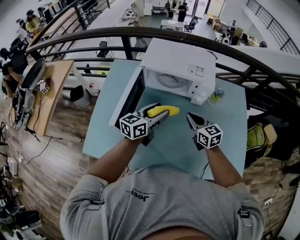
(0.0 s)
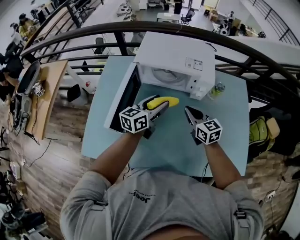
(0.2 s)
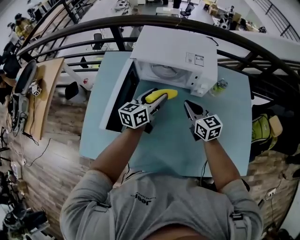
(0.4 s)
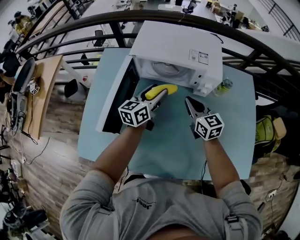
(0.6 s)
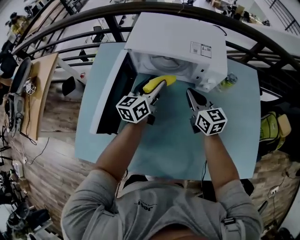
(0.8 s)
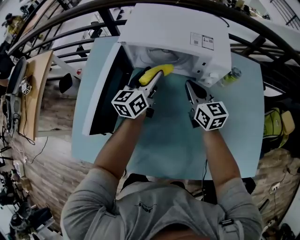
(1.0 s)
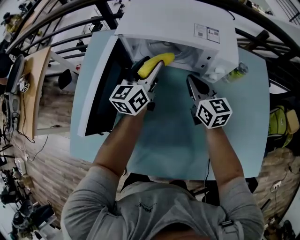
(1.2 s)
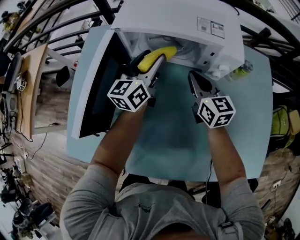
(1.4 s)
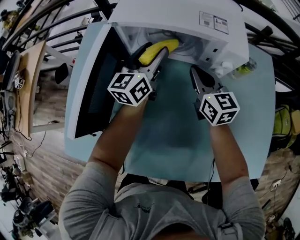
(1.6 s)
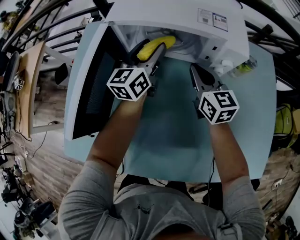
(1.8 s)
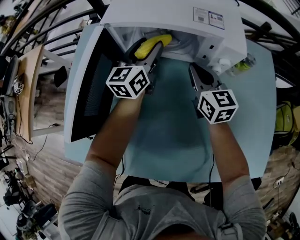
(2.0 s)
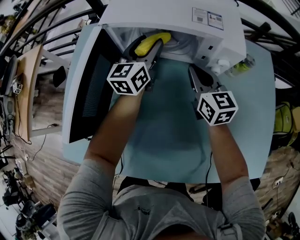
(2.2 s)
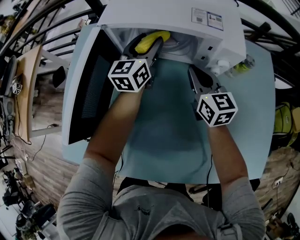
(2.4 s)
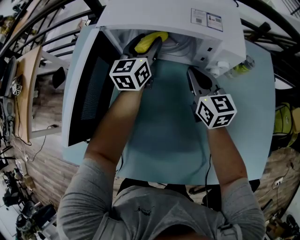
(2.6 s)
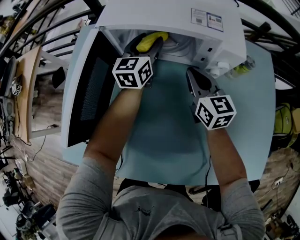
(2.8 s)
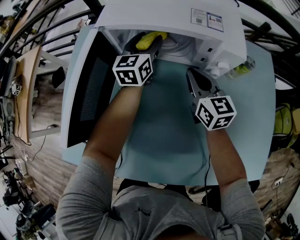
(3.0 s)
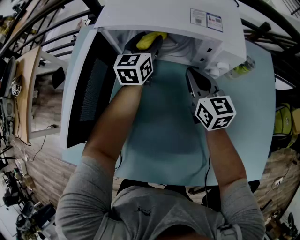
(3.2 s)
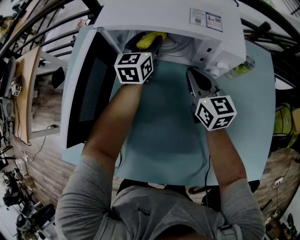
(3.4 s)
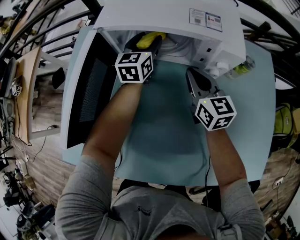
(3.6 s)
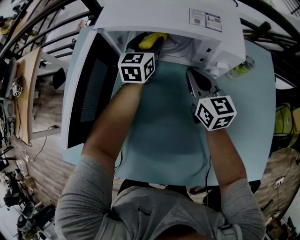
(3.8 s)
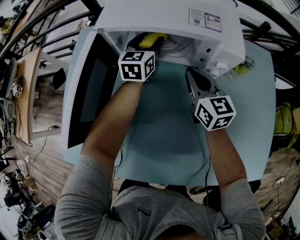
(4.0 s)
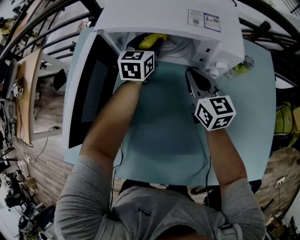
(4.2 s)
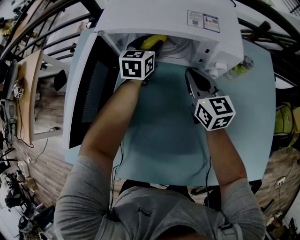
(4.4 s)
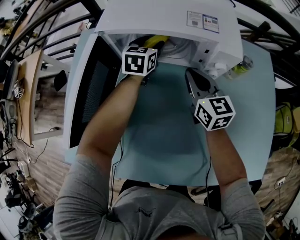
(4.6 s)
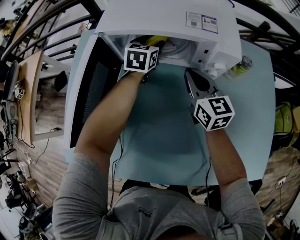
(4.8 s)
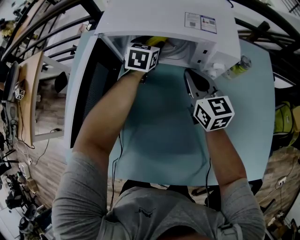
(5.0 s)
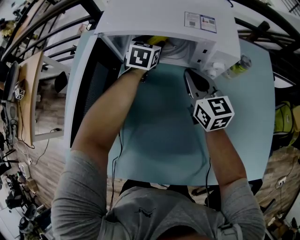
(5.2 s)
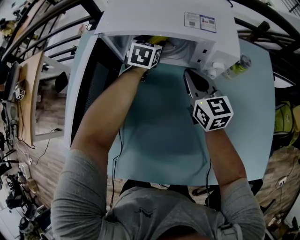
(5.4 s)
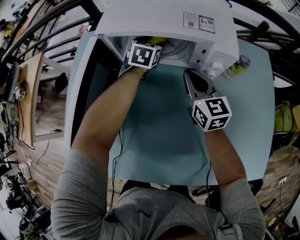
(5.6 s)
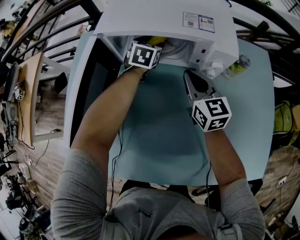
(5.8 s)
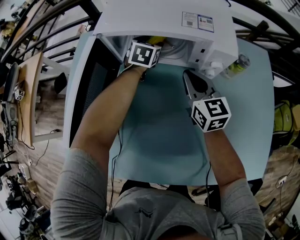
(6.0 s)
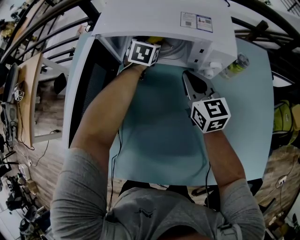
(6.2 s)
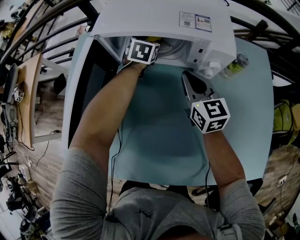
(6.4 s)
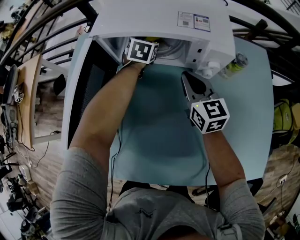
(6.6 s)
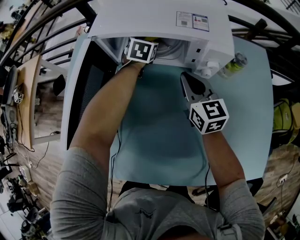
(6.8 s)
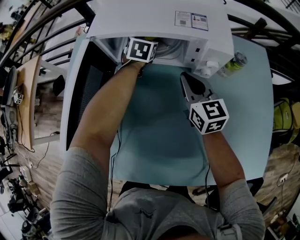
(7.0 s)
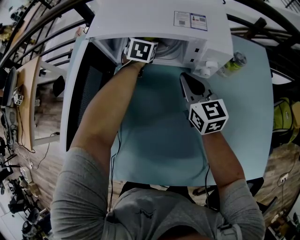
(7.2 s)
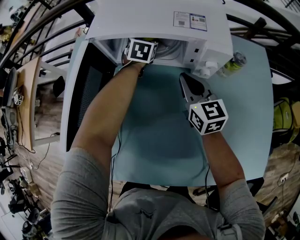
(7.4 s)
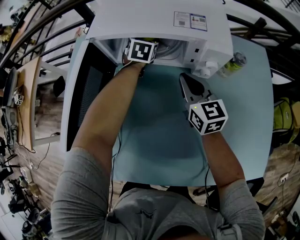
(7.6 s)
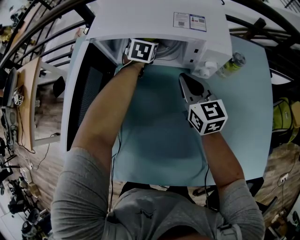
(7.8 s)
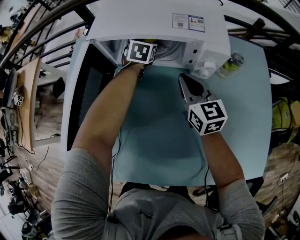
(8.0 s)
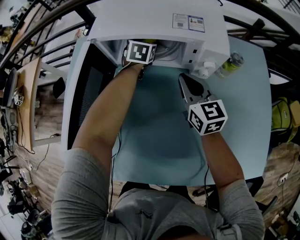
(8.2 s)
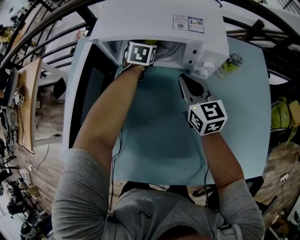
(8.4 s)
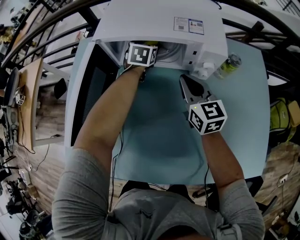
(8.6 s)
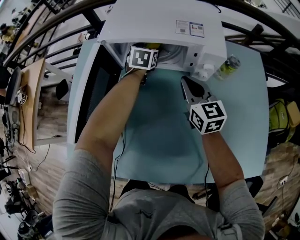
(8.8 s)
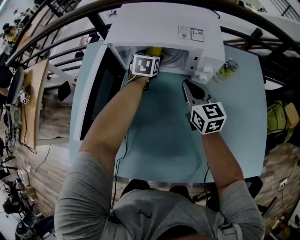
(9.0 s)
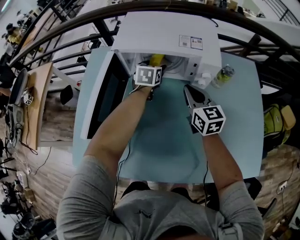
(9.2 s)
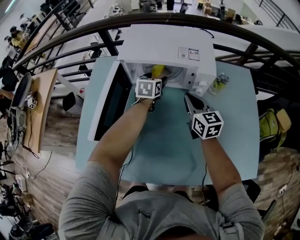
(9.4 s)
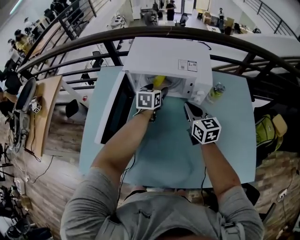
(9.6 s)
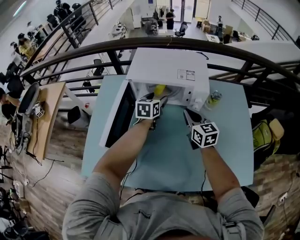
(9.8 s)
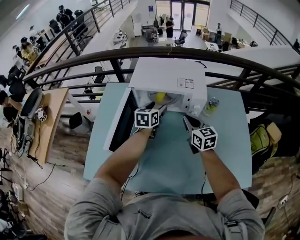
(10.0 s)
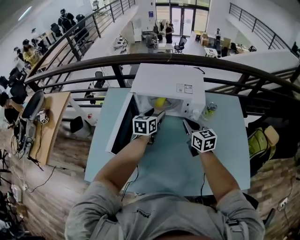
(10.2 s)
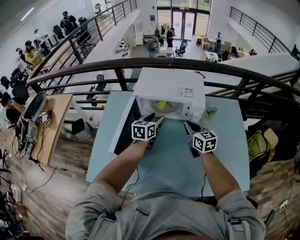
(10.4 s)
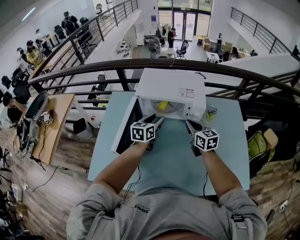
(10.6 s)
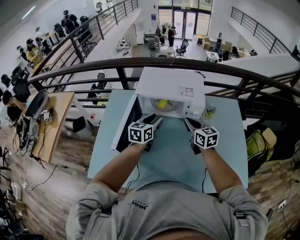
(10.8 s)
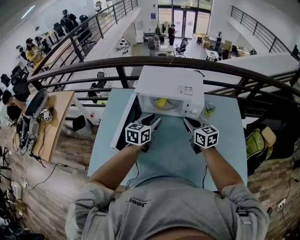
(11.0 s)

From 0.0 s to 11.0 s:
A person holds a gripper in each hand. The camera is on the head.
From 0.0 s to 1.6 s: The grippers both shift forward and downward by roughly 20 cm. The left gripper changes its angle by some 20 degrees.
From 1.6 s to 3.2 s: The left gripper goes some 10 cm forward.
From 3.2 s to 4.8 s: The left gripper changes its angle by some 20 degrees.
From 4.8 s to 7.8 s: The grippers stay close to where they were, moving slightly.
From 7.8 s to 9.4 s: The right gripper shifts some 5 cm upward; the left gripper moves backward and upward, roughly 15 cm.
From 9.4 s to 11.0 s: The left gripper shifts about 20 cm backward and upward, and closes, while the right gripper heads upward, covering roughly 10 cm.

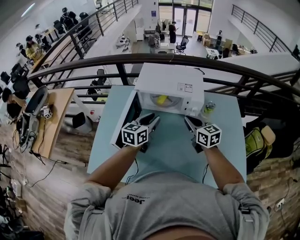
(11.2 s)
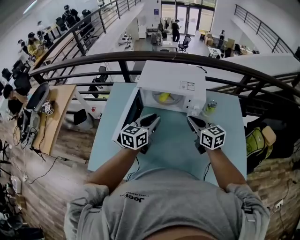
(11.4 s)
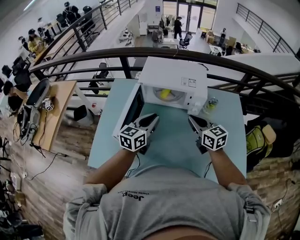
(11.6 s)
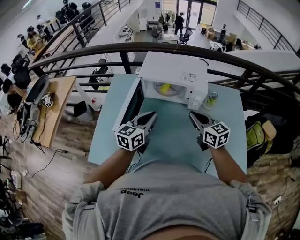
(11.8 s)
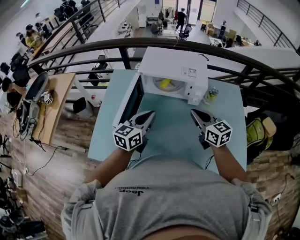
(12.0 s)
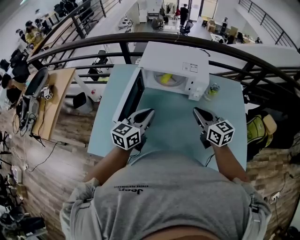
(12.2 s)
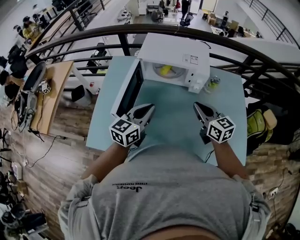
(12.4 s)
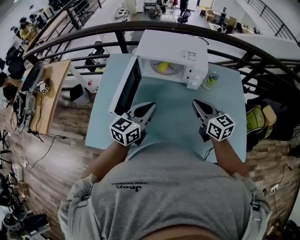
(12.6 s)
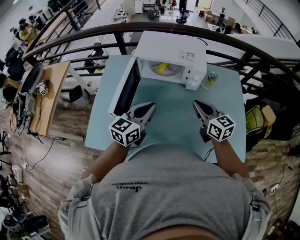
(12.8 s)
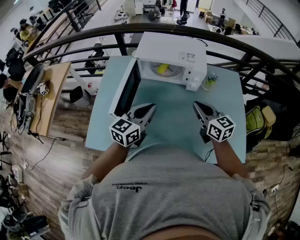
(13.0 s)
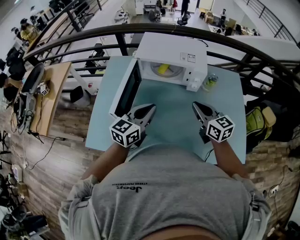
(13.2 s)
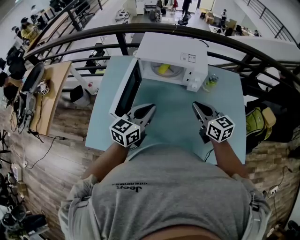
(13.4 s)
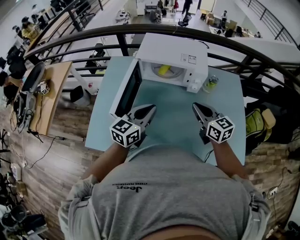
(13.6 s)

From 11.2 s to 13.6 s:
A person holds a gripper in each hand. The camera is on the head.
From 11.2 s to 12.4 s: Both grippers move backward, some 10 cm. The left gripper closes.
From 12.4 s to 13.6 s: The grippers move only a little.

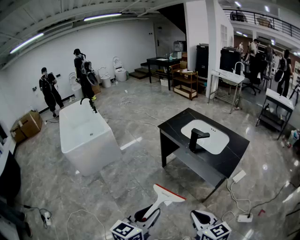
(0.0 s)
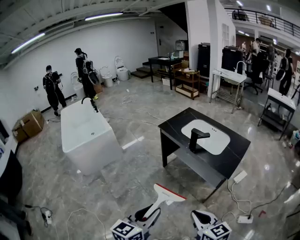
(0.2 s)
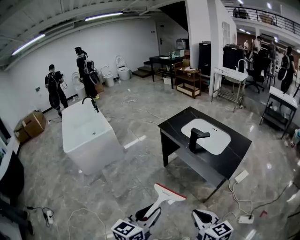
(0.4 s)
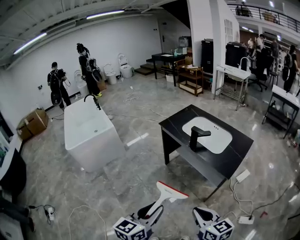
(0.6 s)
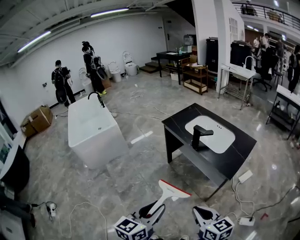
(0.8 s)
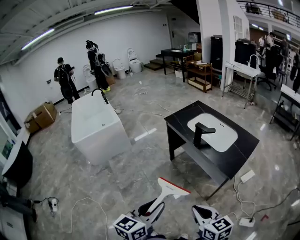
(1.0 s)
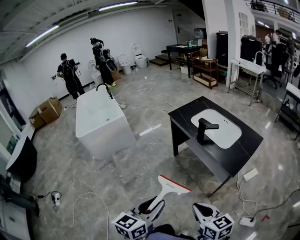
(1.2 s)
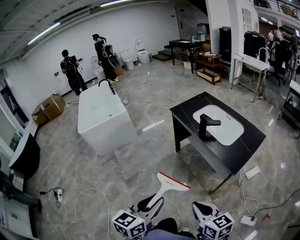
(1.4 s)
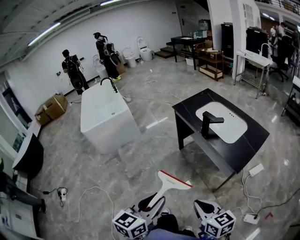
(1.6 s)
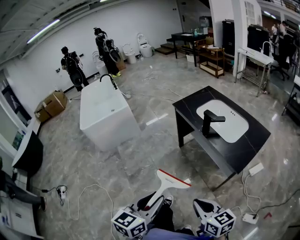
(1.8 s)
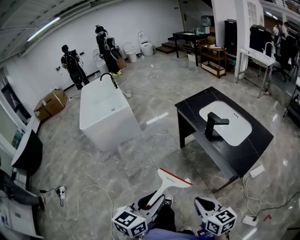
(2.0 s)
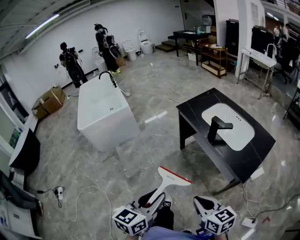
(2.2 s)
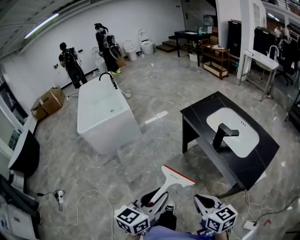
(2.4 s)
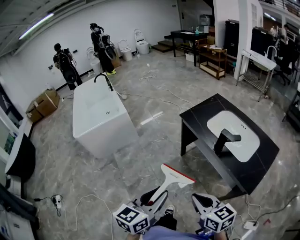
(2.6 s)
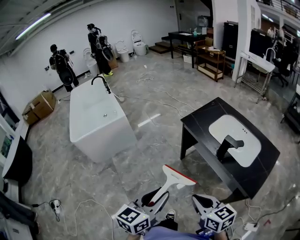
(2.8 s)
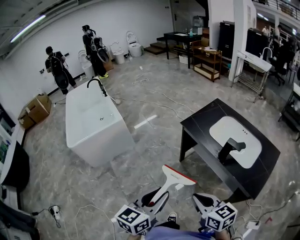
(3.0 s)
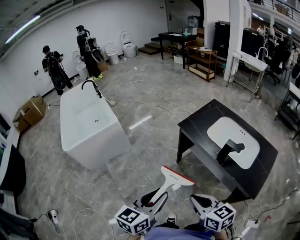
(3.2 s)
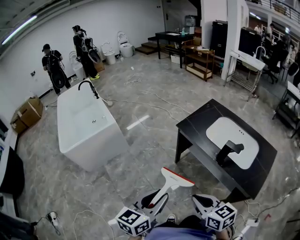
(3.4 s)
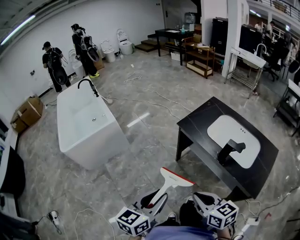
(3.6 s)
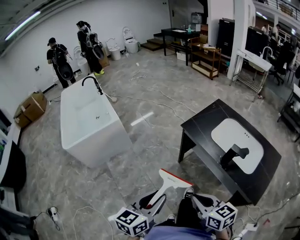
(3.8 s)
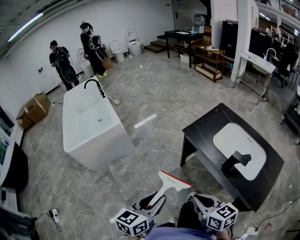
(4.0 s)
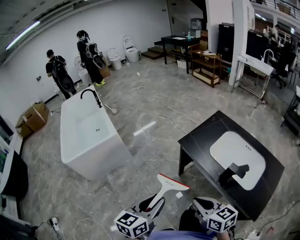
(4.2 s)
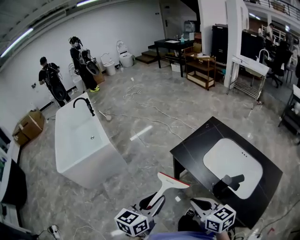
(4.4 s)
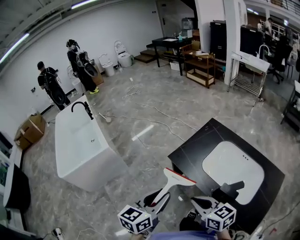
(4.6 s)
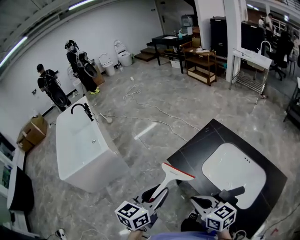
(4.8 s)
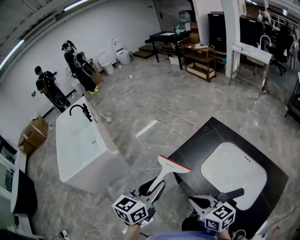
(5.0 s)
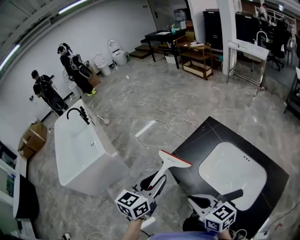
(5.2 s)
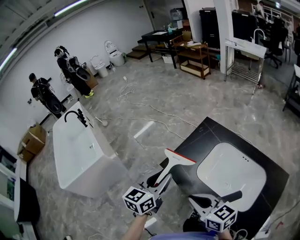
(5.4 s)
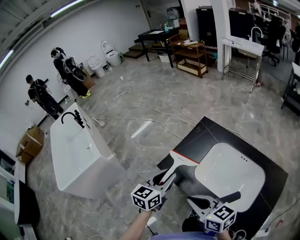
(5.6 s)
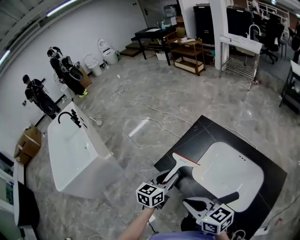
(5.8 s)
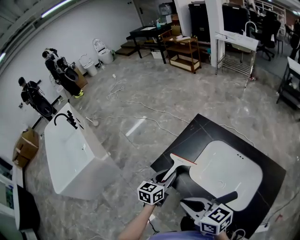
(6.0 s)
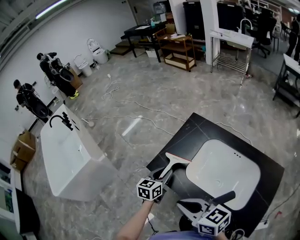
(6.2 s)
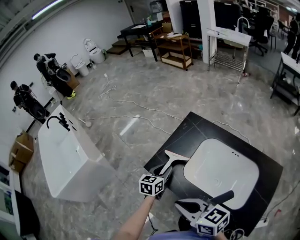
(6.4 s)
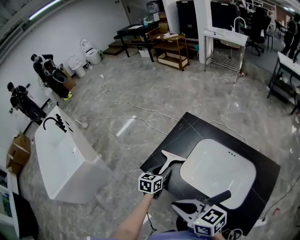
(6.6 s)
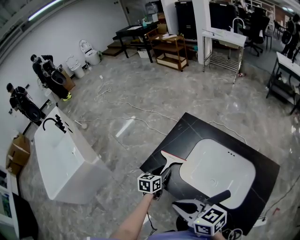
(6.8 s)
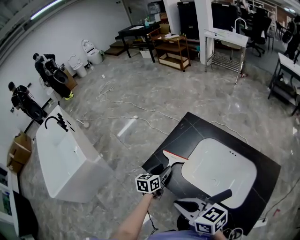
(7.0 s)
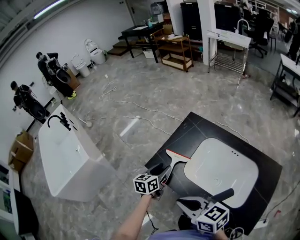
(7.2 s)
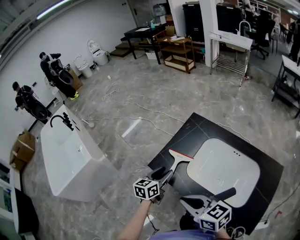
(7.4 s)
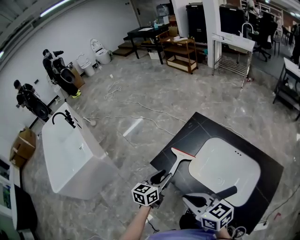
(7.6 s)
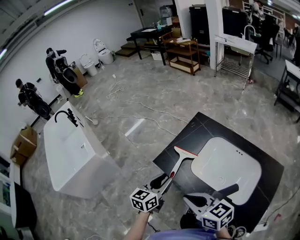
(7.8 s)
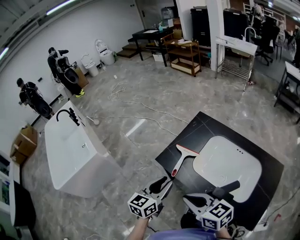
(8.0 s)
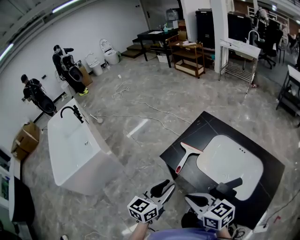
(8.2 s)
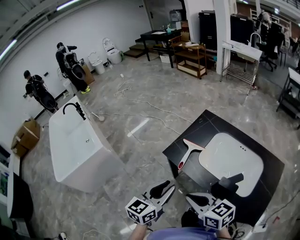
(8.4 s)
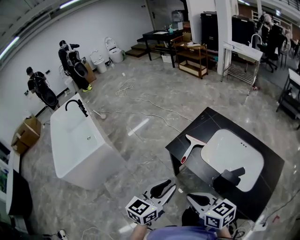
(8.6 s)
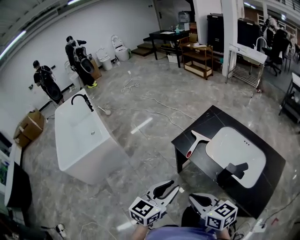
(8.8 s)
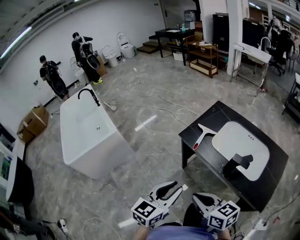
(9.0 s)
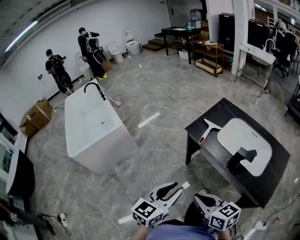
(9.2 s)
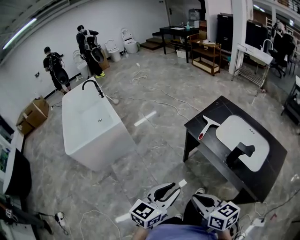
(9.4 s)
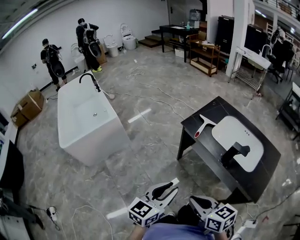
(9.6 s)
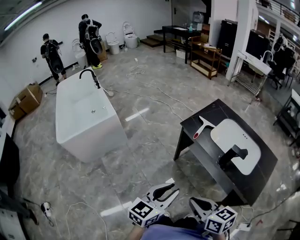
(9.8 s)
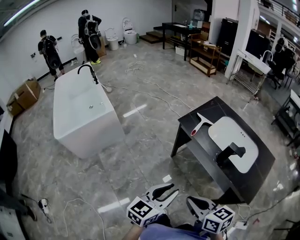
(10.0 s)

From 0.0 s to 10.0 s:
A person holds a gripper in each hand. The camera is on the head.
From 0.0 s to 1.4 s: Both grippers travel together to the right, some 10 cm.
From 1.4 s to 2.8 s: The right gripper moves forward and to the left, approximately 30 cm; the left gripper shifts roughly 25 cm forward.
From 2.8 s to 4.2 s: Both grippers travel together forward, about 15 cm.
From 4.2 s to 5.8 s: The right gripper moves forward and to the right, some 20 cm, while the left gripper is displaced forward and to the right by about 40 cm.
From 5.8 s to 7.2 s: The left gripper shifts some 10 cm downward and forward, and opens.
From 7.2 s to 8.6 s: The right gripper moves backward and to the left, about 15 cm. Meanwhile the left gripper shifts roughly 30 cm backward and upward, rotates about 20 degrees, and closes its fingers.
From 8.6 s to 10.0 s: Both grippers move backward, some 20 cm.
